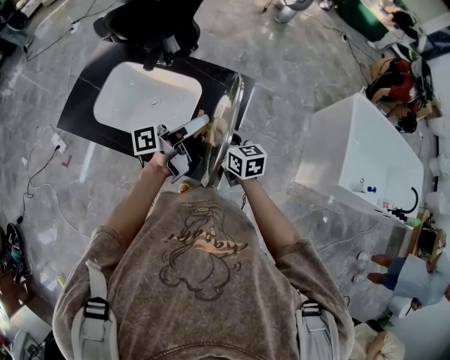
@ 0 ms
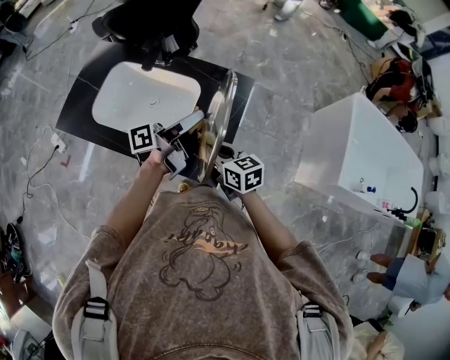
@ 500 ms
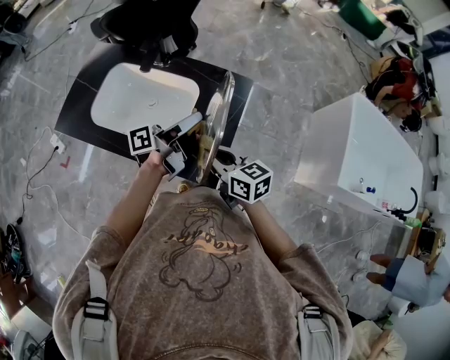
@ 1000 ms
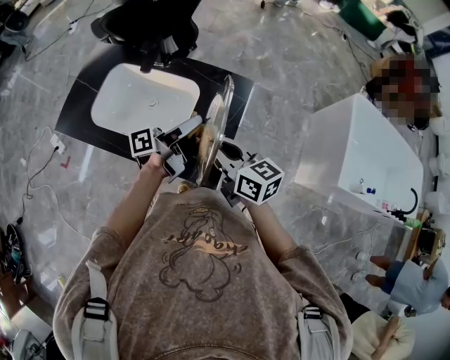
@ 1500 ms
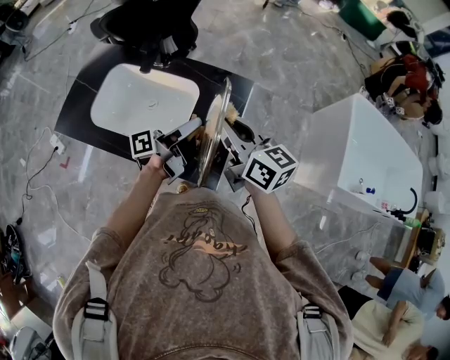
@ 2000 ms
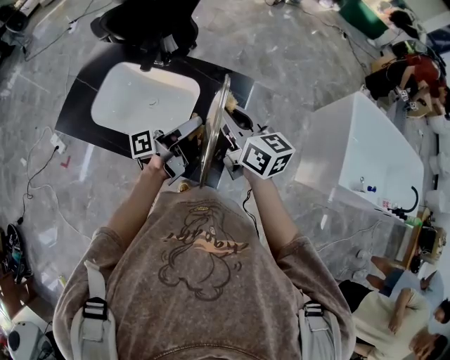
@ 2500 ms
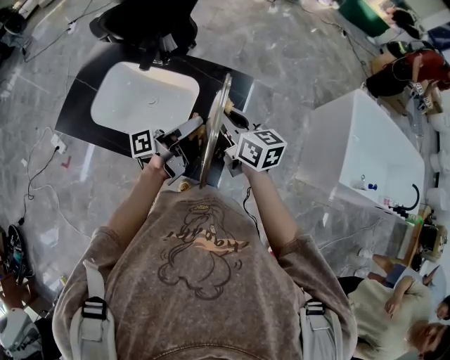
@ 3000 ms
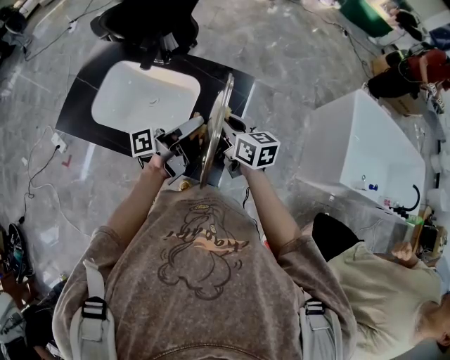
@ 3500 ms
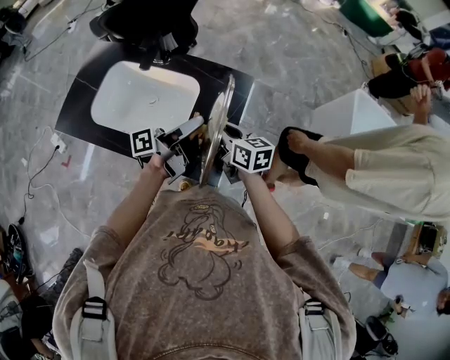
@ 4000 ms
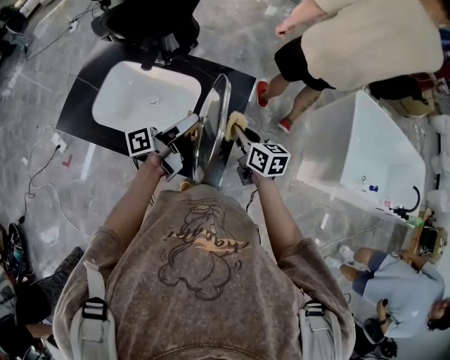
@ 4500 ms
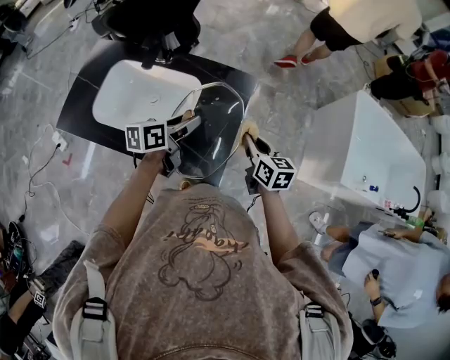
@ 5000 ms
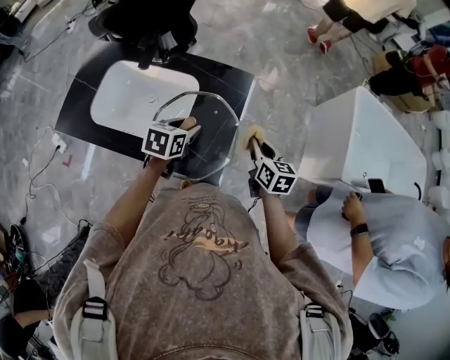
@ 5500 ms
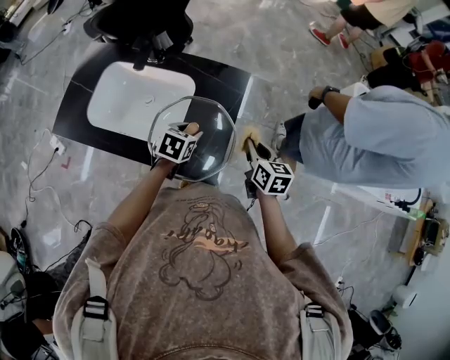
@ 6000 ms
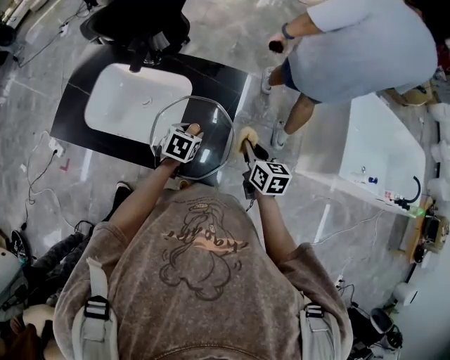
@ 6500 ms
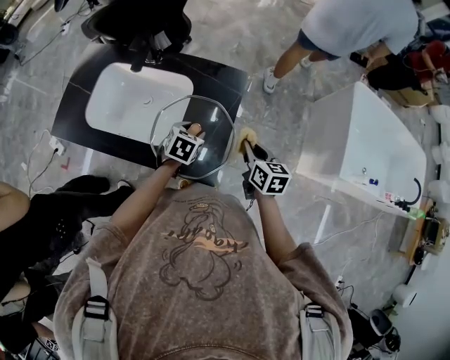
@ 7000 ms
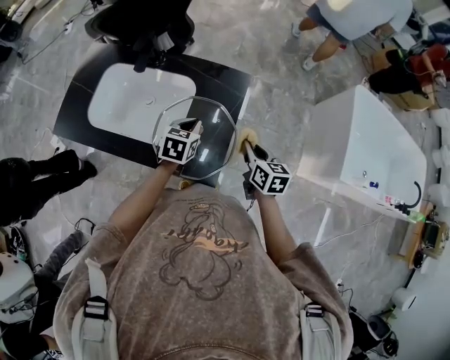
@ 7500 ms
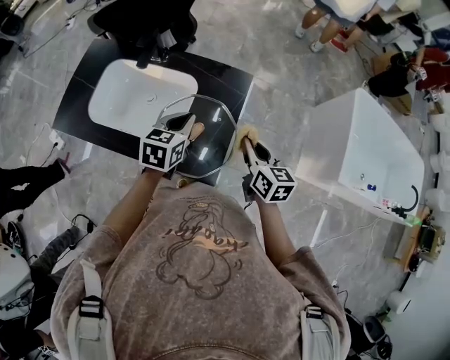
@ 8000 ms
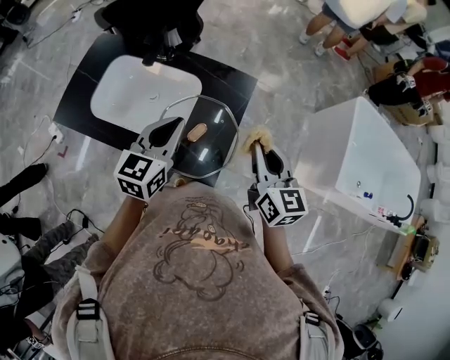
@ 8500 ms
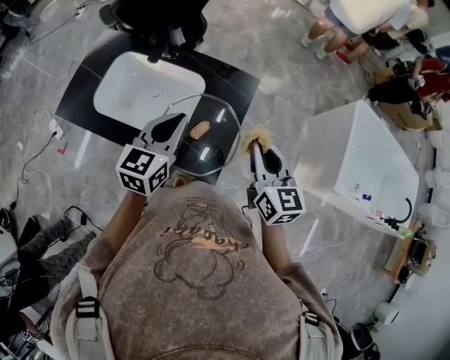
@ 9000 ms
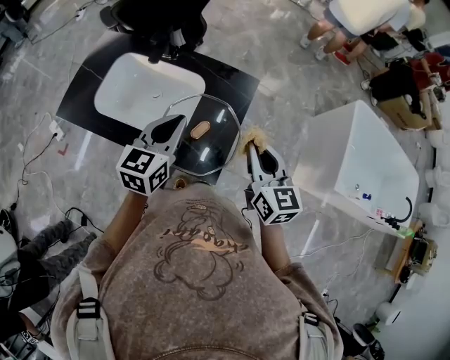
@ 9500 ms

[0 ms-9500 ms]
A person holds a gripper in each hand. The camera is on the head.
0 ms to 2000 ms: The right gripper is displaced upward by roughly 20 cm, and swivels roughly 20 degrees.
2000 ms to 4000 ms: The right gripper is displaced downward by roughly 15 cm.
4000 ms to 5500 ms: The right gripper goes approximately 15 cm to the right, and swivels approximately 20 degrees, while the left gripper shifts approximately 10 cm downward, and points its fingers roughly 60 degrees further downward.
5500 ms to 7500 ms: The left gripper travels downward and back again, about 10 cm each way, and closes up.
7500 ms to 9500 ms: Both grippers move upward, about 15 cm. The left gripper turns by approximately 30 degrees, while the right gripper swivels about 20 degrees.

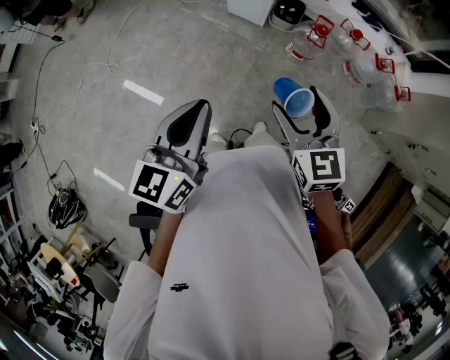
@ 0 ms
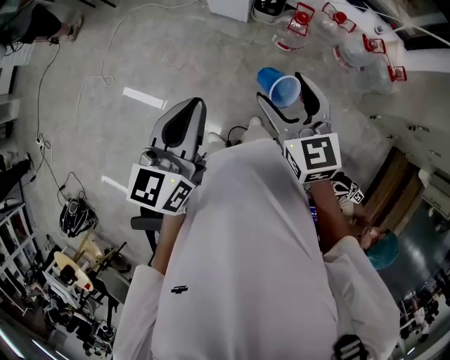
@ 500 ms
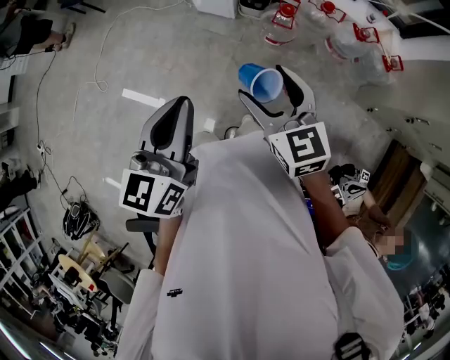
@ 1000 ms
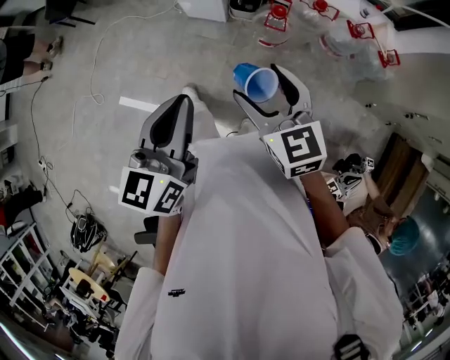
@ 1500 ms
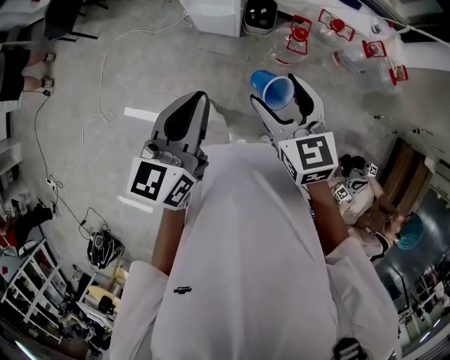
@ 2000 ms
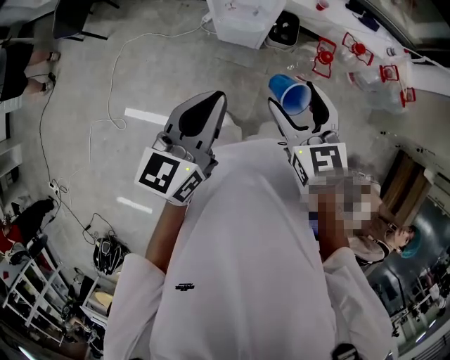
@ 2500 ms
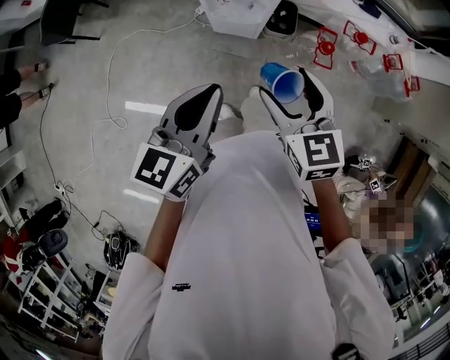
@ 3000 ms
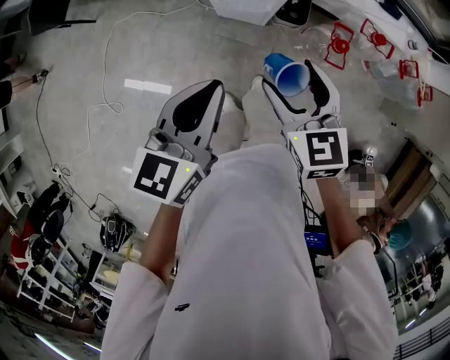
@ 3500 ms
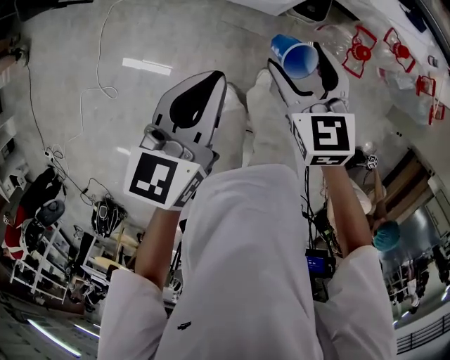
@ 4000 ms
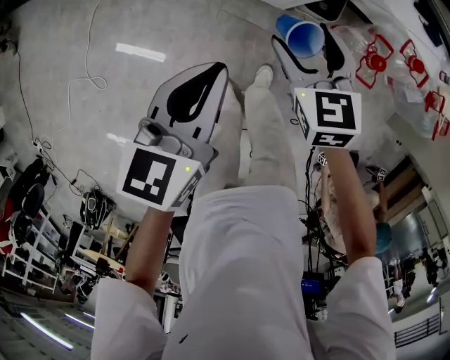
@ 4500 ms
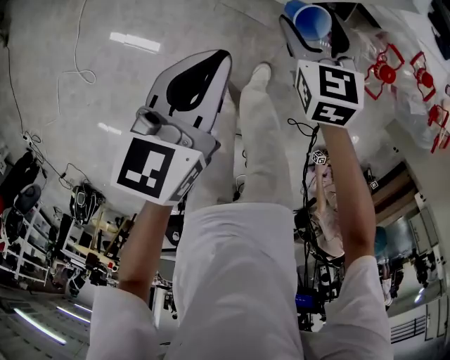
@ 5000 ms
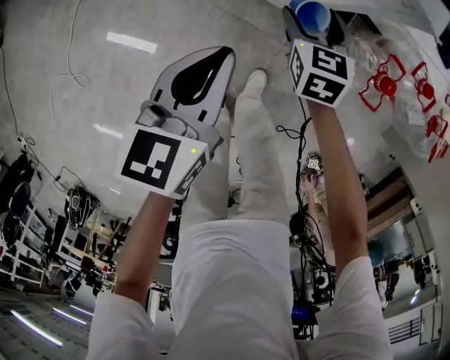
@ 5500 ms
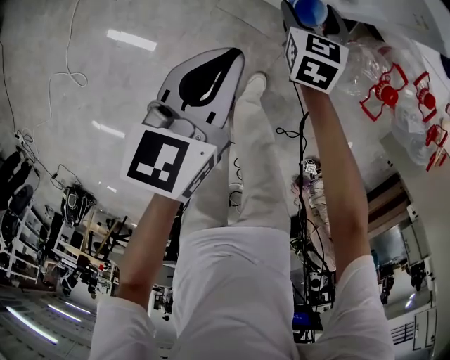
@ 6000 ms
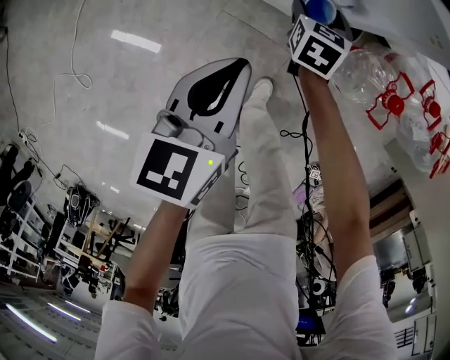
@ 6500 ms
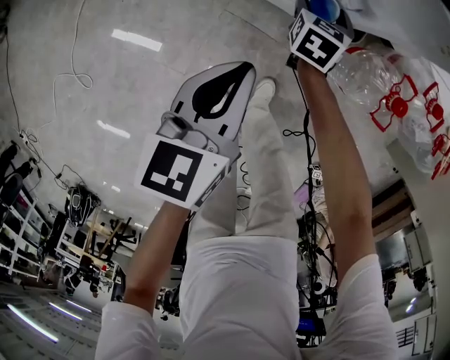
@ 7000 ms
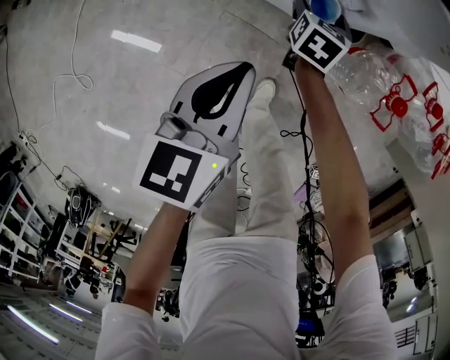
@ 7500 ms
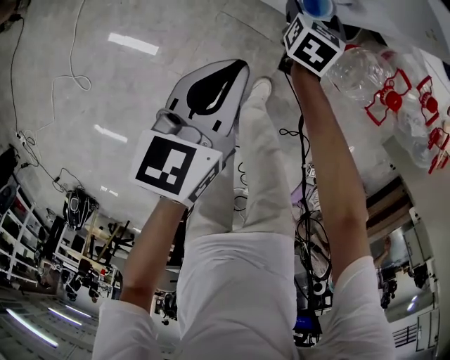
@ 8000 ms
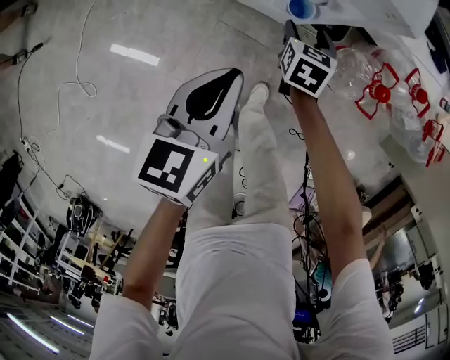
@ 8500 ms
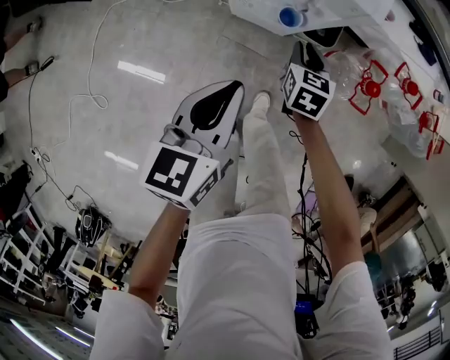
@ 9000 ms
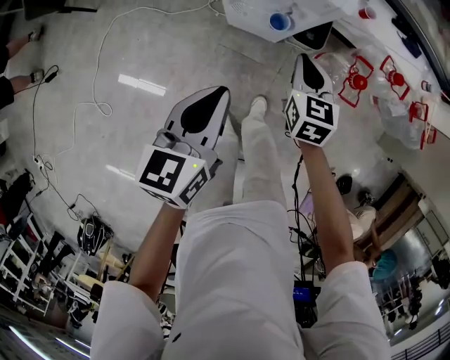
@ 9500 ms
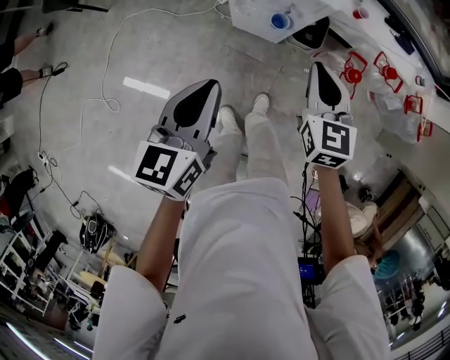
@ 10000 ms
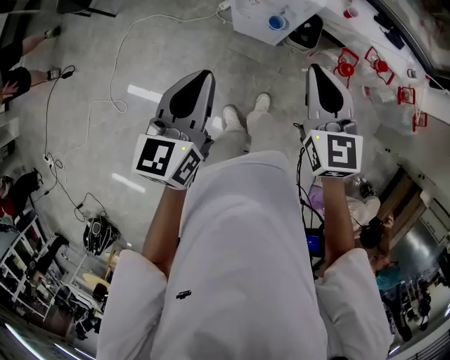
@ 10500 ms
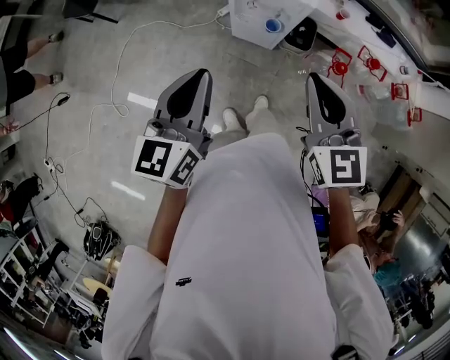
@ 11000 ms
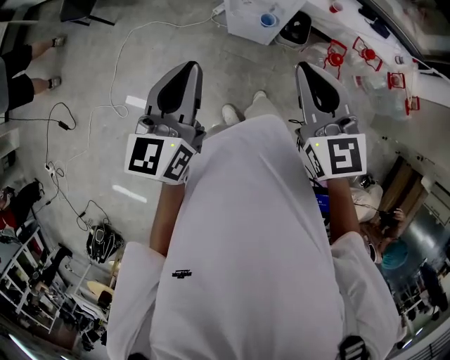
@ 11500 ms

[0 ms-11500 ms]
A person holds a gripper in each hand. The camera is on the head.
0 ms to 2000 ms: Both grippers travel together forward, roughly 20 cm.
2000 ms to 4000 ms: The two grippers go roughly 30 cm forward, downward and to the left.
4000 ms to 6000 ms: The right gripper moves downward and forward, approximately 35 cm; the left gripper travels downward and forward by roughly 20 cm.
6000 ms to 7500 ms: The right gripper travels downward by about 5 cm, and changes its angle by some 20 degrees.
7500 ms to 9500 ms: The right gripper moves upward and backward, some 25 cm, and closes. The left gripper is displaced upward and backward by some 15 cm.
9500 ms to 11500 ms: The right gripper goes some 40 cm upward and backward, and changes its angle by about 30 degrees. The left gripper is displaced upward and backward by about 25 cm, and swivels about 20 degrees.

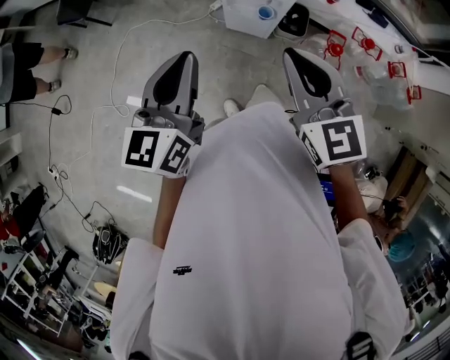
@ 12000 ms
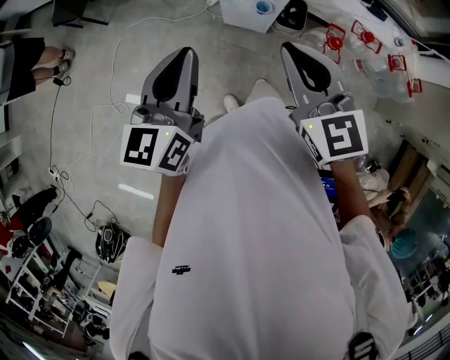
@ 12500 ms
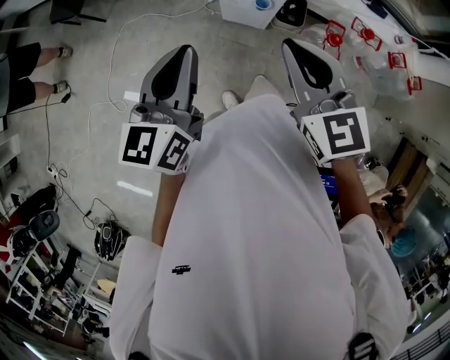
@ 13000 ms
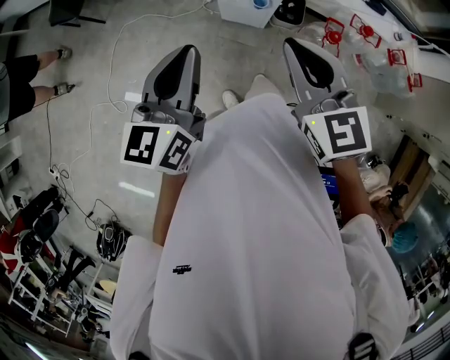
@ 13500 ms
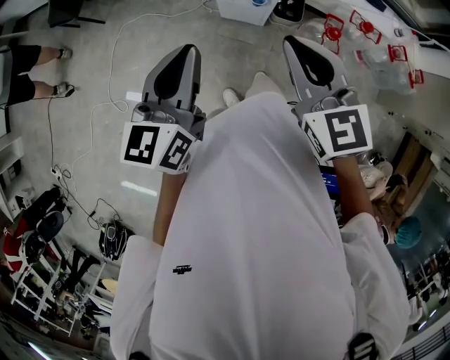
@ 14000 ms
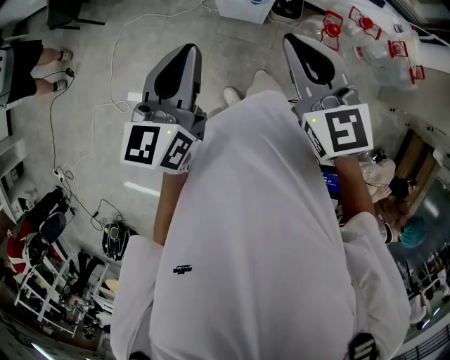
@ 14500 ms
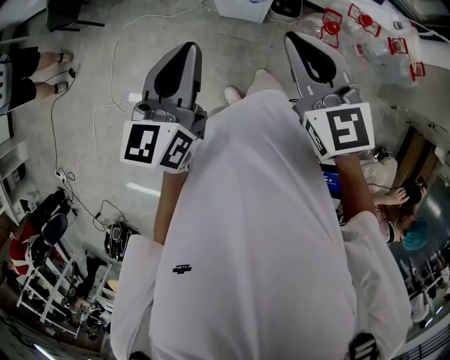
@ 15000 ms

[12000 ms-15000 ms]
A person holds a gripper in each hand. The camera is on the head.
12000 ms to 15000 ms: The grippers move only a little.

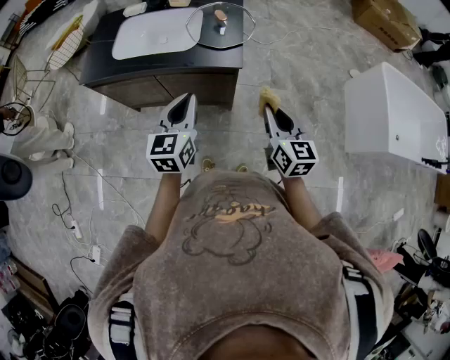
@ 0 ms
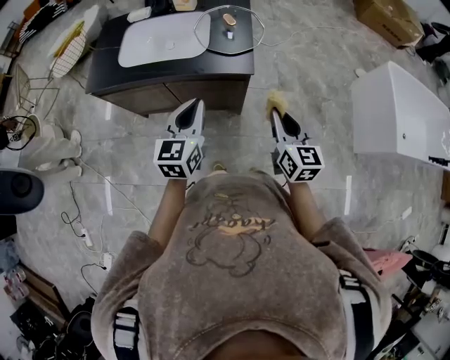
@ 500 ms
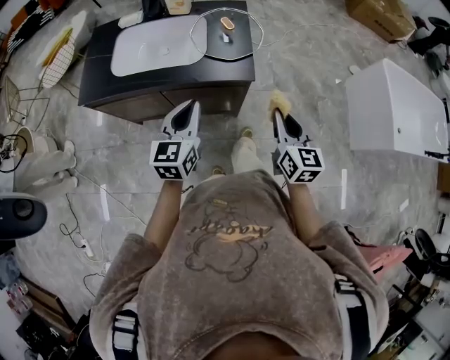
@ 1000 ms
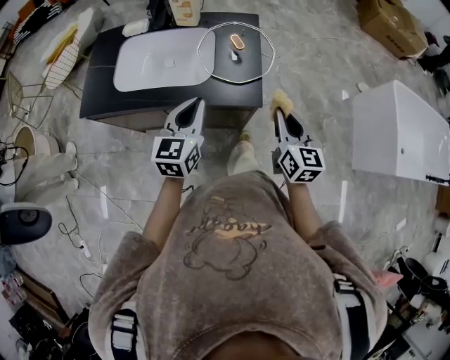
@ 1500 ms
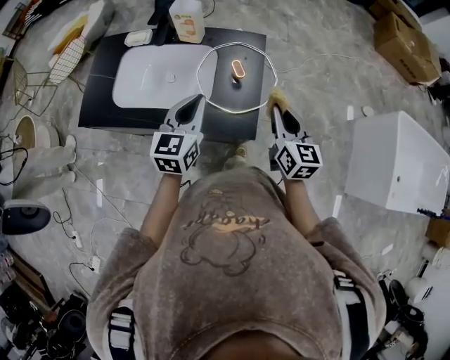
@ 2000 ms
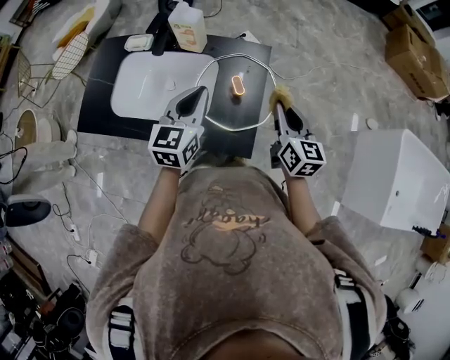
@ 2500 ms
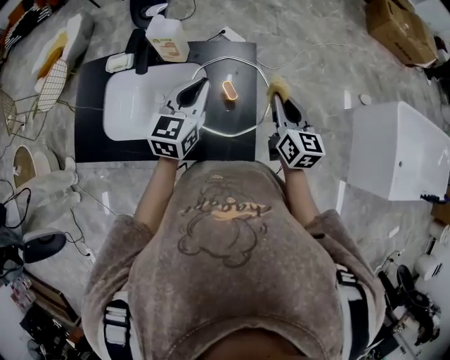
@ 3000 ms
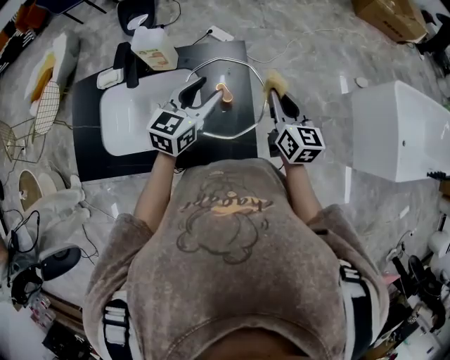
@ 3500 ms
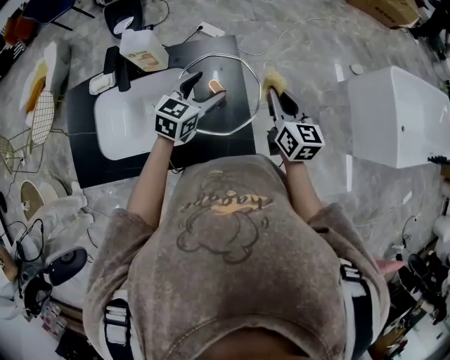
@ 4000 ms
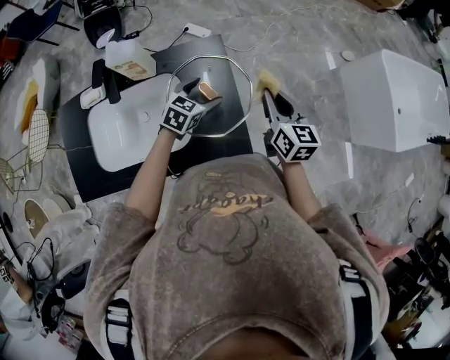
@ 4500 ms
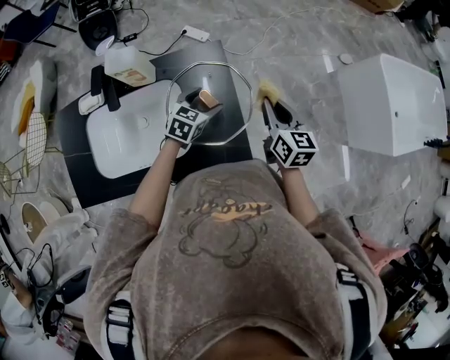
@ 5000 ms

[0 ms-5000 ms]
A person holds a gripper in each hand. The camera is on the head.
0 ms to 2500 ms: The two grippers travel together, forward, roughly 40 cm.
2500 ms to 5000 ms: The right gripper ends up approximately 5 cm from where it was, and turns by approximately 20 degrees. The left gripper shifts some 20 cm downward, changes its angle by some 50 degrees, and opens.
